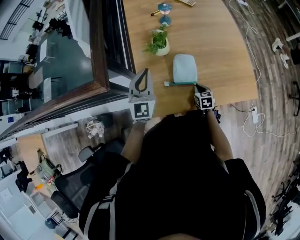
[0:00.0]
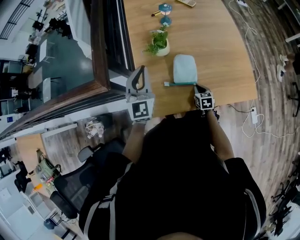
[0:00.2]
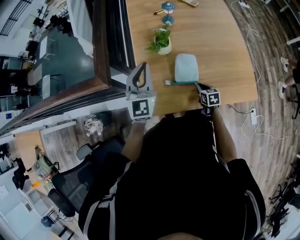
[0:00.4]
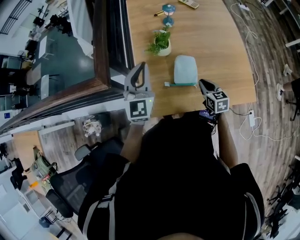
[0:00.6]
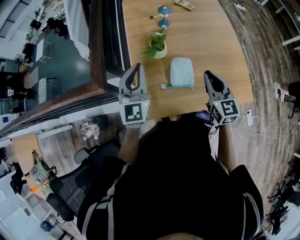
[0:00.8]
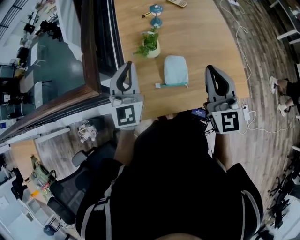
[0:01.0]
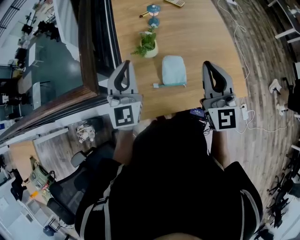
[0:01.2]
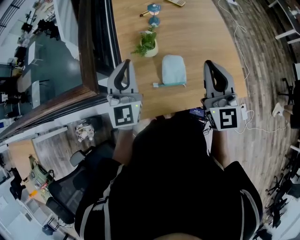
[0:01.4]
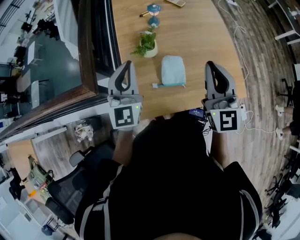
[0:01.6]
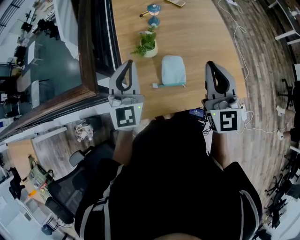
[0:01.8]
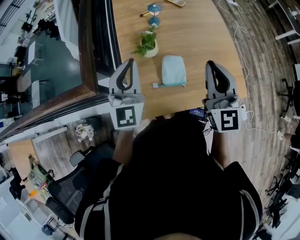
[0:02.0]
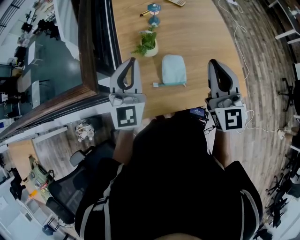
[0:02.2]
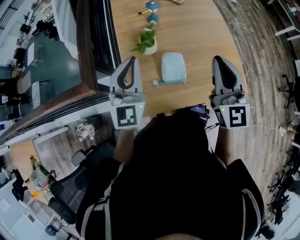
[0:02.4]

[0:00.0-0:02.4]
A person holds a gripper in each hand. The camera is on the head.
0:00.0 to 0:01.2: The left gripper goes about 10 cm upward. The right gripper shifts roughly 40 cm upward, and tips its fingers upward by roughly 50 degrees.
0:01.2 to 0:02.4: The grippers move only a little.

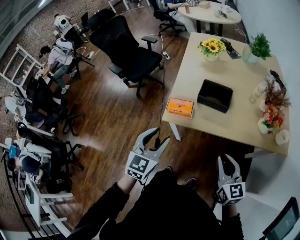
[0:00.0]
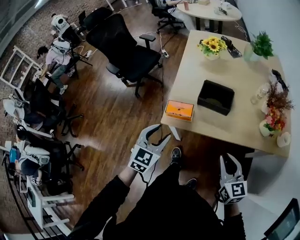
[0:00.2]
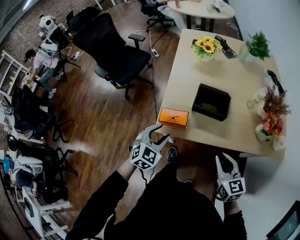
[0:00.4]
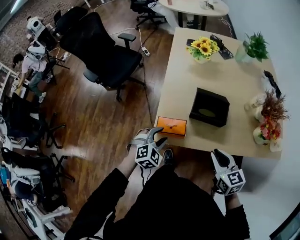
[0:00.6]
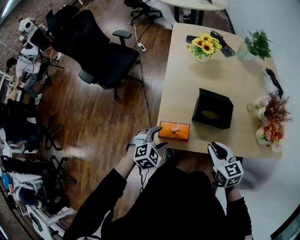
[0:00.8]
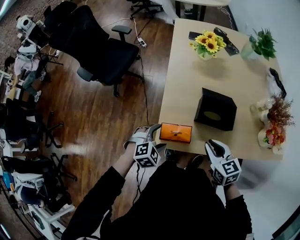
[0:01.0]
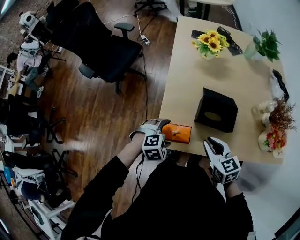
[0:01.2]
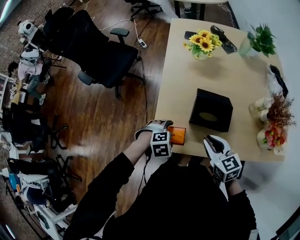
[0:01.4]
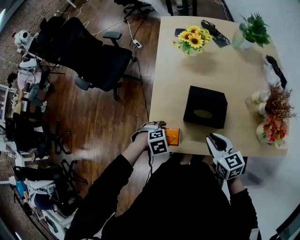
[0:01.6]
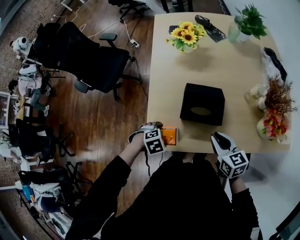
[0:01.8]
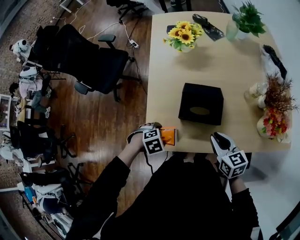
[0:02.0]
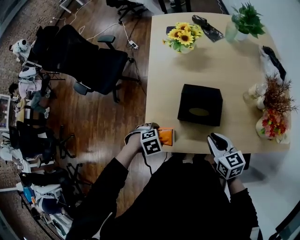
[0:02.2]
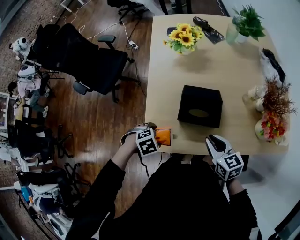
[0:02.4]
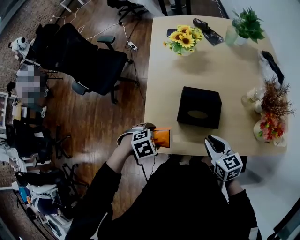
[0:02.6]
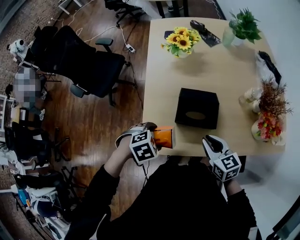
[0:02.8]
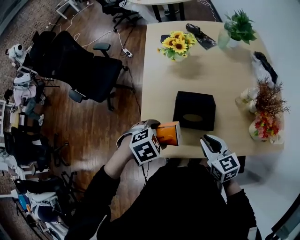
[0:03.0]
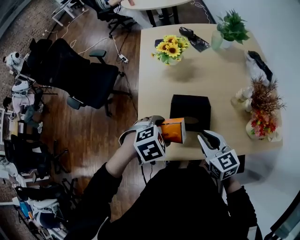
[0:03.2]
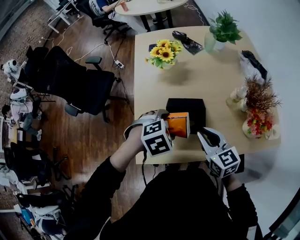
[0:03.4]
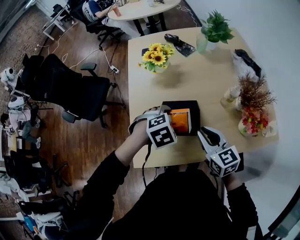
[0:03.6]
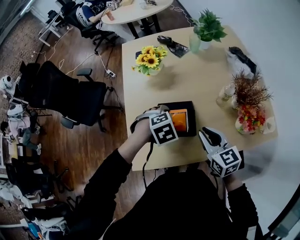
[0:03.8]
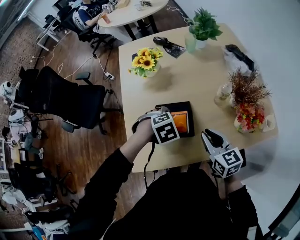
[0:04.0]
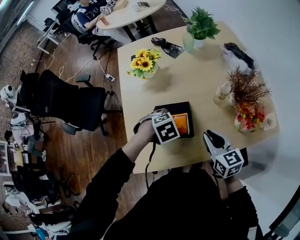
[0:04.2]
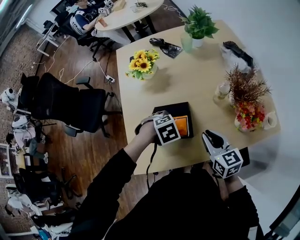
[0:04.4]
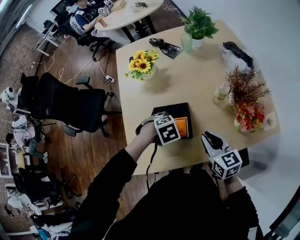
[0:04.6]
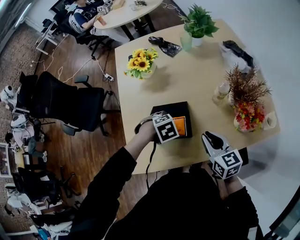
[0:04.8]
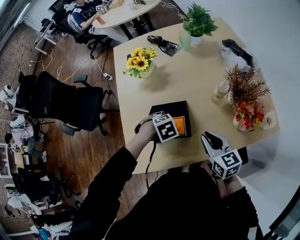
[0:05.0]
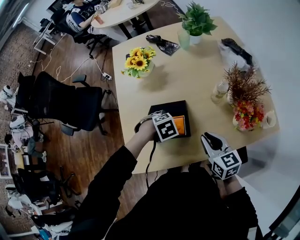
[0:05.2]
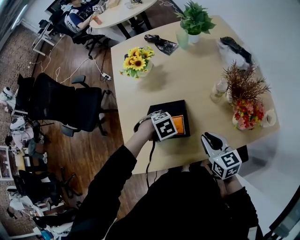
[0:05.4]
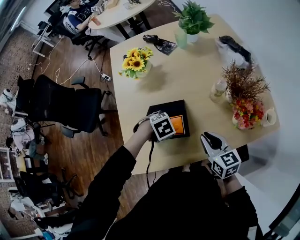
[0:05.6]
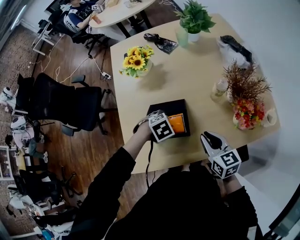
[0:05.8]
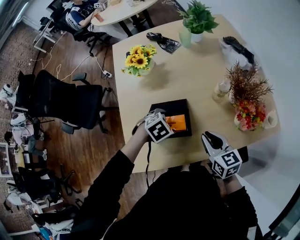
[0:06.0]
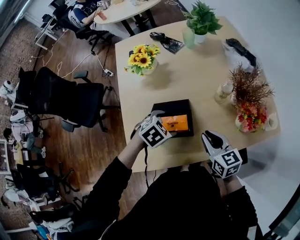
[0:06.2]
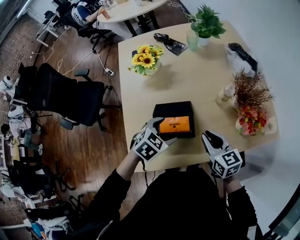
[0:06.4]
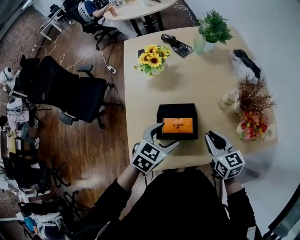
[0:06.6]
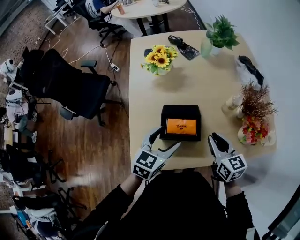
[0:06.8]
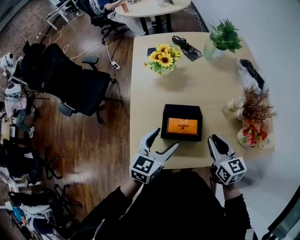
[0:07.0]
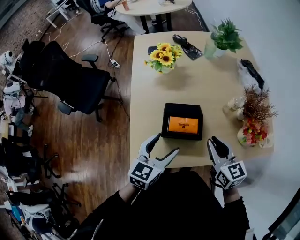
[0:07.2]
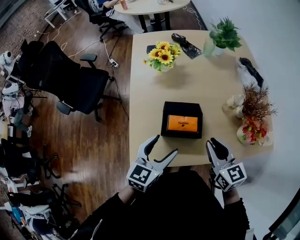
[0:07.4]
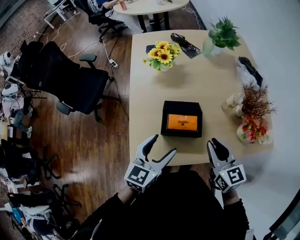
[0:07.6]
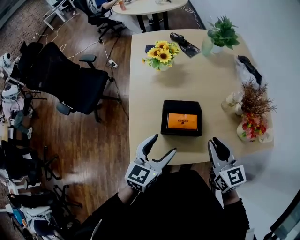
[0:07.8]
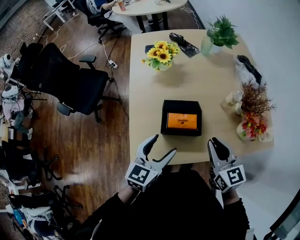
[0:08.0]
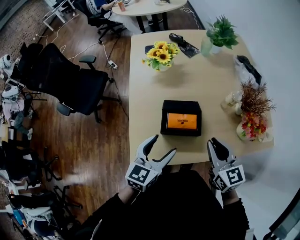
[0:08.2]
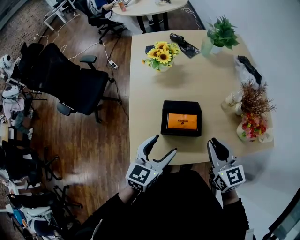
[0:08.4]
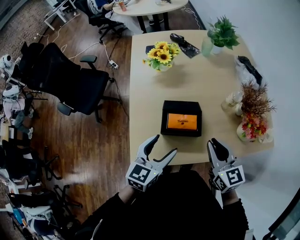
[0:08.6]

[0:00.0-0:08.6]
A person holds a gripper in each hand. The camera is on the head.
0:00.0 to 0:01.4: The left gripper shifts approximately 30 cm downward and forward, tips its fingers downward by about 50 degrees, and opens up. The right gripper is displaced forward by approximately 25 cm.
0:01.4 to 0:02.8: The right gripper ends up roughly 5 cm from where it was; the left gripper moves upward, about 5 cm.
0:02.8 to 0:04.4: The left gripper changes place by roughly 20 cm. Meanwhile the right gripper ends up roughly 10 cm from where it was.
0:04.4 to 0:05.8: The grippers move only a little.
0:05.8 to 0:07.2: The left gripper travels upward by about 15 cm, and points its fingers approximately 50 degrees further upward. The right gripper moves upward, roughly 10 cm.
0:07.2 to 0:08.6: The grippers move only a little.

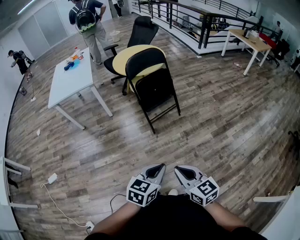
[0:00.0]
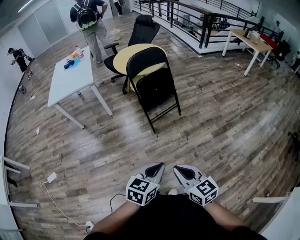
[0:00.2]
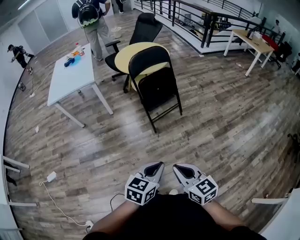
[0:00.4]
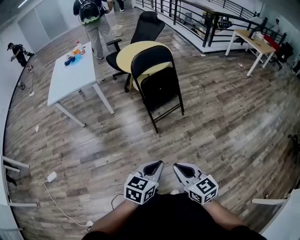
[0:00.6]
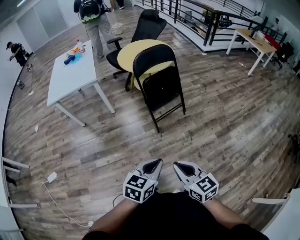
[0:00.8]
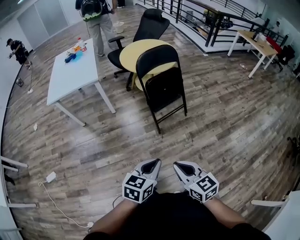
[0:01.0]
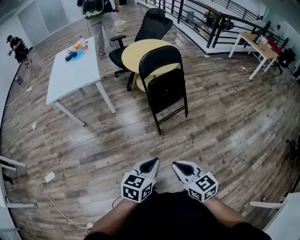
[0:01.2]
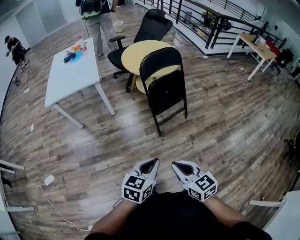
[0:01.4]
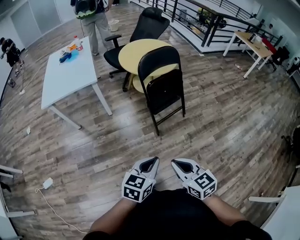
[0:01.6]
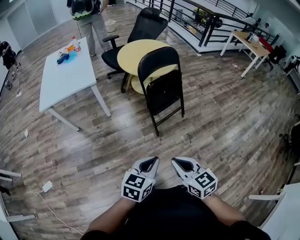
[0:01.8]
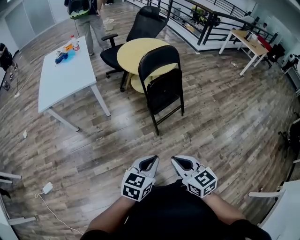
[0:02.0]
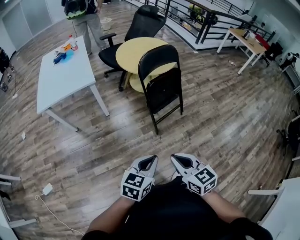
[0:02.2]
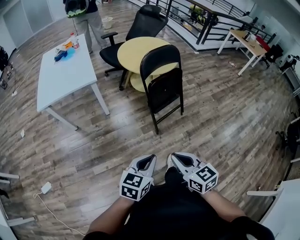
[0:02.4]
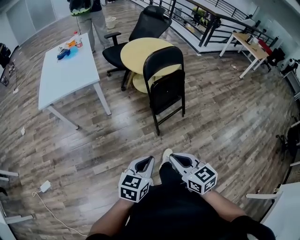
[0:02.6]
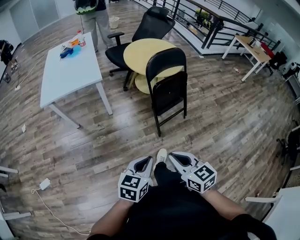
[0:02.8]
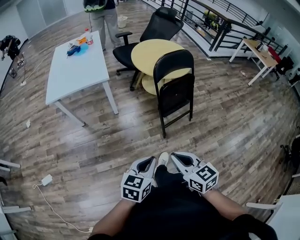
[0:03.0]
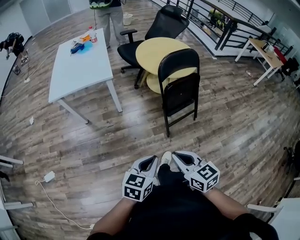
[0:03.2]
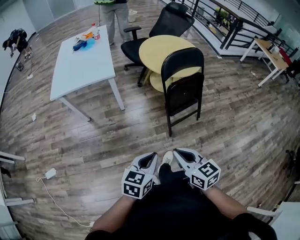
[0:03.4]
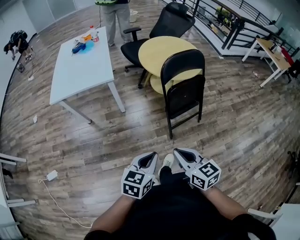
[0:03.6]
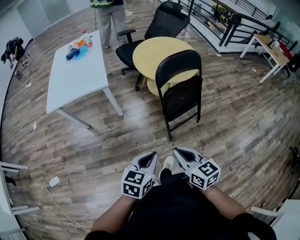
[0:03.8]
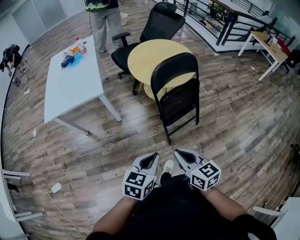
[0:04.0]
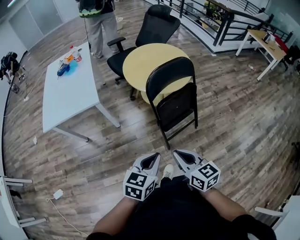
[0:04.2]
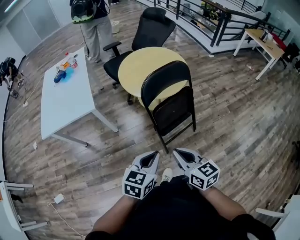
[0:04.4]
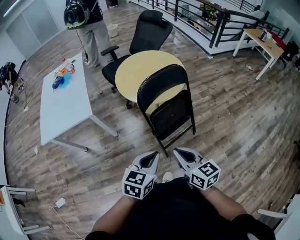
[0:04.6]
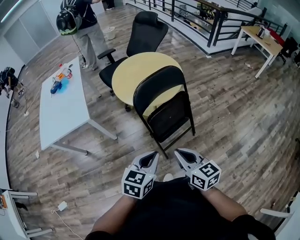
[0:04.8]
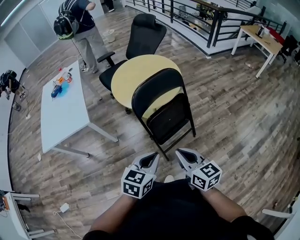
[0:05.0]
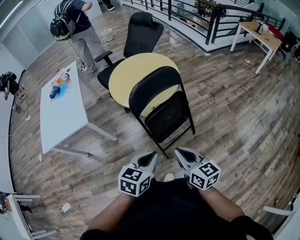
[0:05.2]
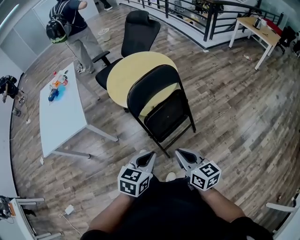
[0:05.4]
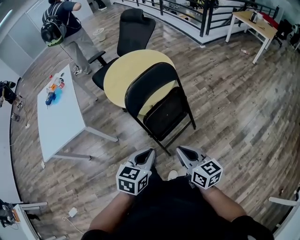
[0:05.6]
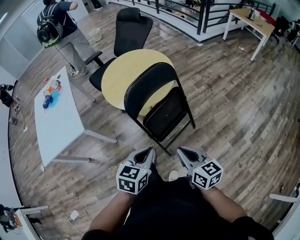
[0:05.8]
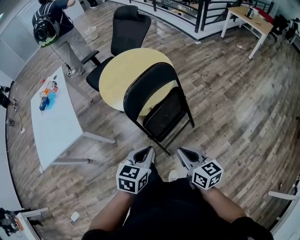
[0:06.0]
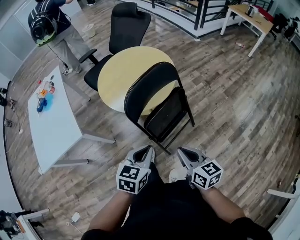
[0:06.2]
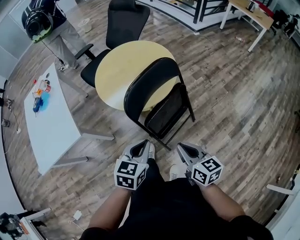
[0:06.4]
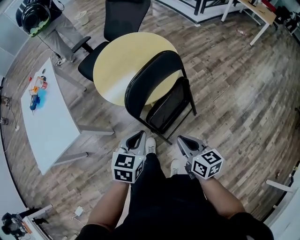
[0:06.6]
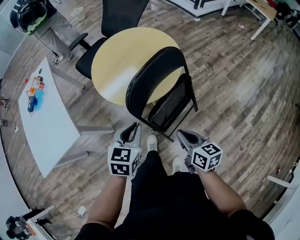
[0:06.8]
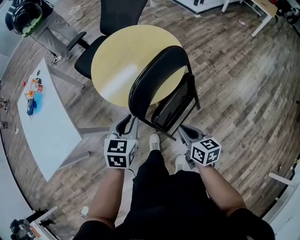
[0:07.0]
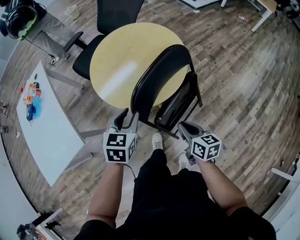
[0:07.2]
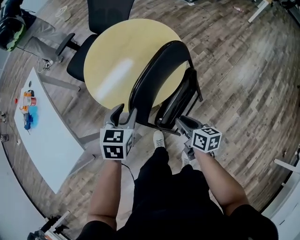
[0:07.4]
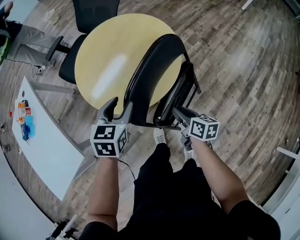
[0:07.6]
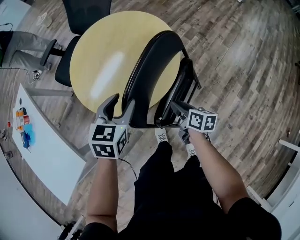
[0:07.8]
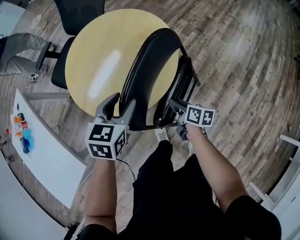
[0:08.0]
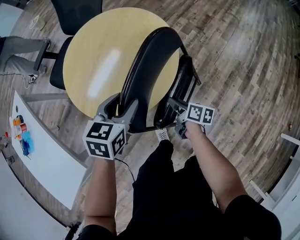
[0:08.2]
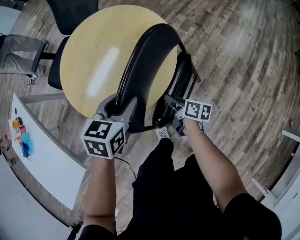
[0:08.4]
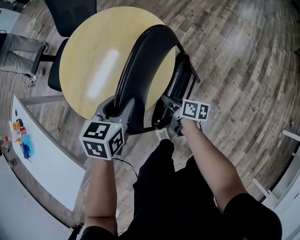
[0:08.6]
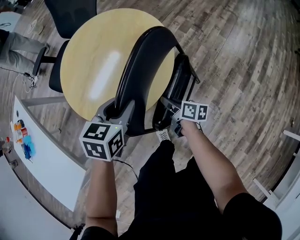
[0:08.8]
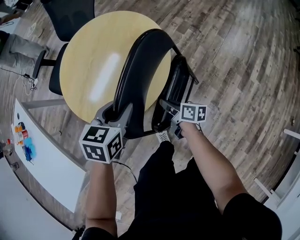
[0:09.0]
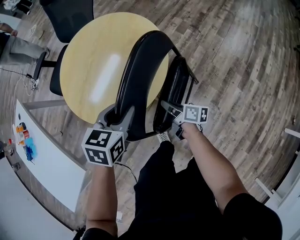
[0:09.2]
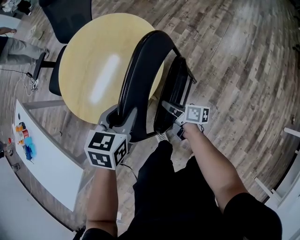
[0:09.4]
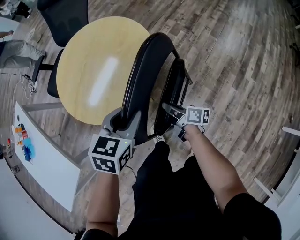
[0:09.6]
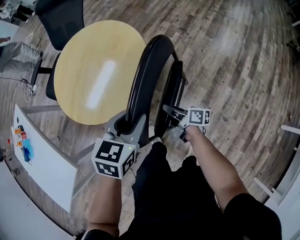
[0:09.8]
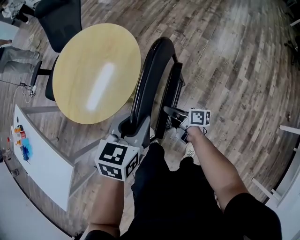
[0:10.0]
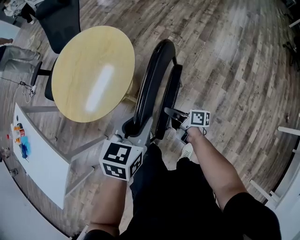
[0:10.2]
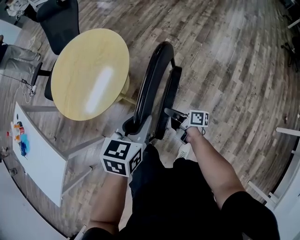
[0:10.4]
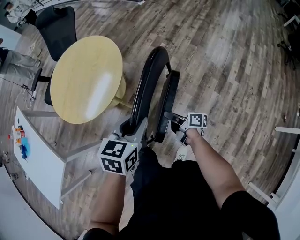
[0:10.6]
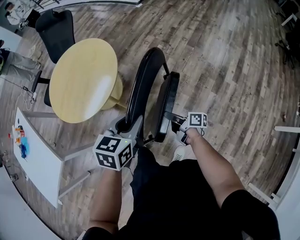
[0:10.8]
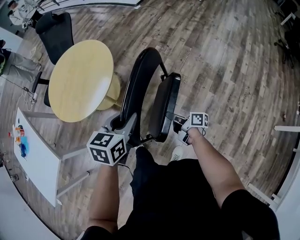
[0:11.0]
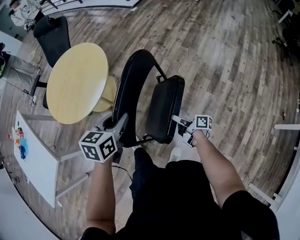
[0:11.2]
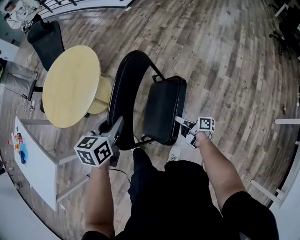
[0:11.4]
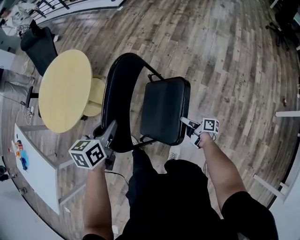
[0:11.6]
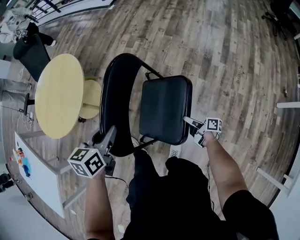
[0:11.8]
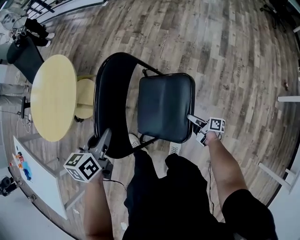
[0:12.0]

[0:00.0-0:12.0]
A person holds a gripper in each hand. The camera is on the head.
0:00.0 to 0:01.6: Both grippers move to the left and forward, some 25 cm.
0:01.6 to 0:03.0: The left gripper is displaced to the left by approximately 10 cm, while the right gripper goes roughly 10 cm to the left and forward.
0:03.0 to 0:04.4: The grippers both shift forward and to the right by some 25 cm.
0:04.4 to 0:06.0: The right gripper travels forward and to the right by about 10 cm; the left gripper moves forward, about 15 cm.
0:06.0 to 0:07.6: The left gripper heads forward, covering about 30 cm, and opens; the right gripper heads forward and downward, covering about 30 cm, changes its angle by about 30 degrees, and opens up.
0:07.6 to 0:09.0: The left gripper shifts some 5 cm to the right; the right gripper moves downward, about 10 cm.
0:09.0 to 0:10.4: Both grippers travel together to the right and backward, roughly 25 cm.
0:10.4 to 0:12.0: The left gripper moves to the right, downward and backward, approximately 15 cm, while the right gripper goes some 40 cm to the right, backward and downward, and opens.
